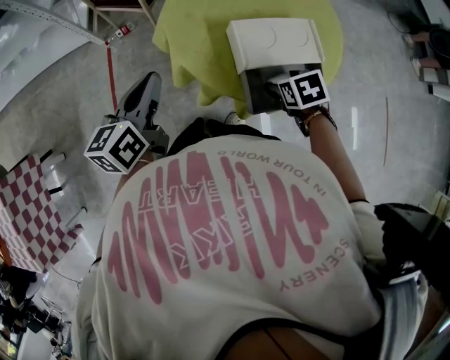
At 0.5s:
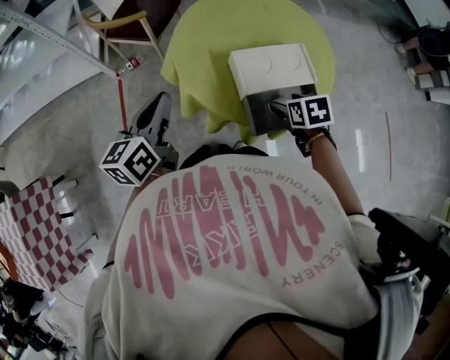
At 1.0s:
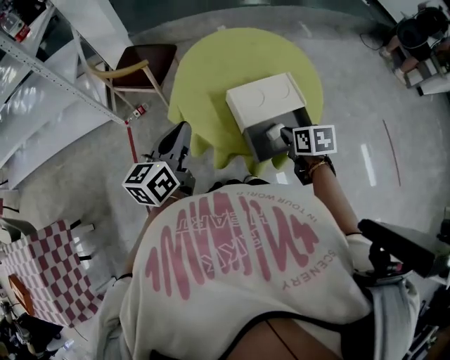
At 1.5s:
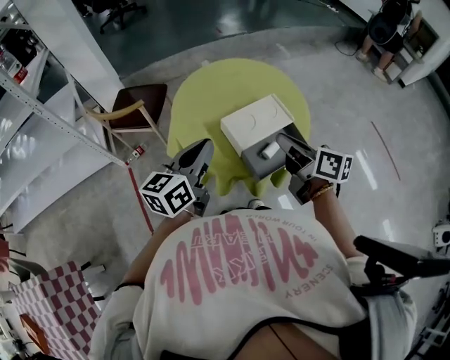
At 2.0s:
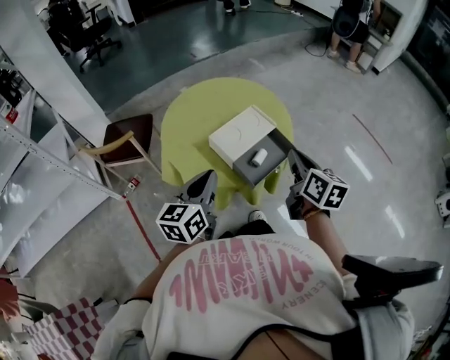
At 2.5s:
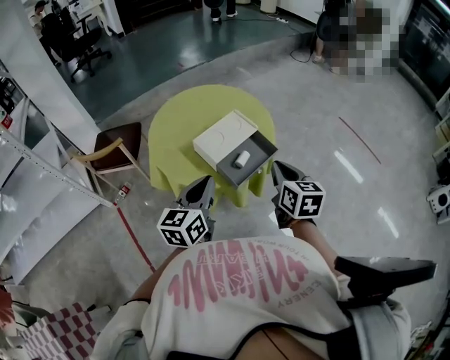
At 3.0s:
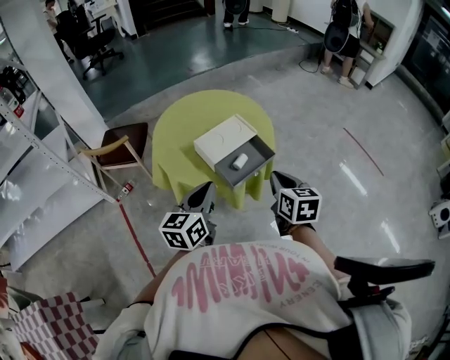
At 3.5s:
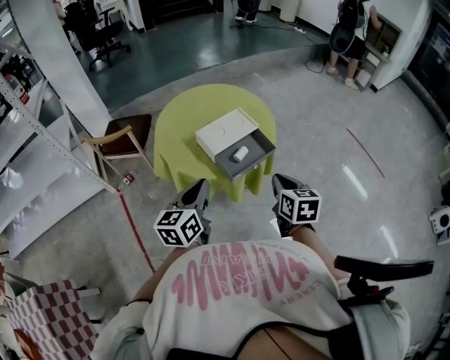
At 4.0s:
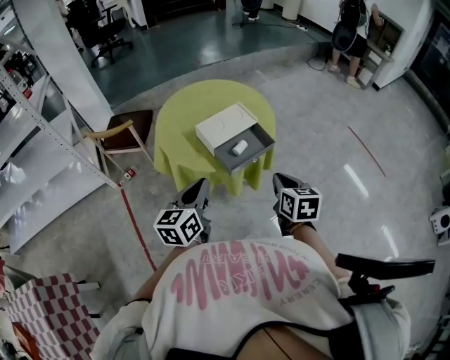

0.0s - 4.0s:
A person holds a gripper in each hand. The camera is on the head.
0.0s - 2.0s: The left gripper ends up about 15 cm from where it was, and swivels some 30 degrees; the right gripper goes roughly 20 cm upward, tips its fingers upward by approximately 50 degrees, and closes its fingers.
2.0s - 4.0s: The two grippers go about 15 cm backward and to the right. The right gripper turns by approximately 20 degrees.

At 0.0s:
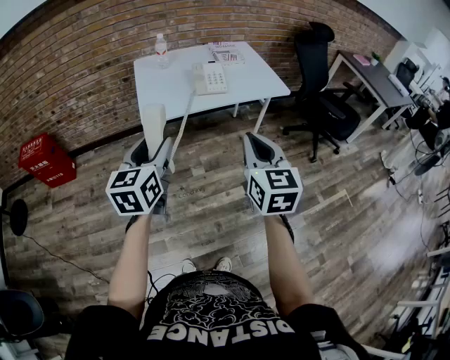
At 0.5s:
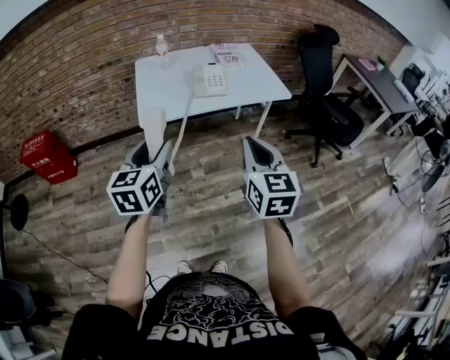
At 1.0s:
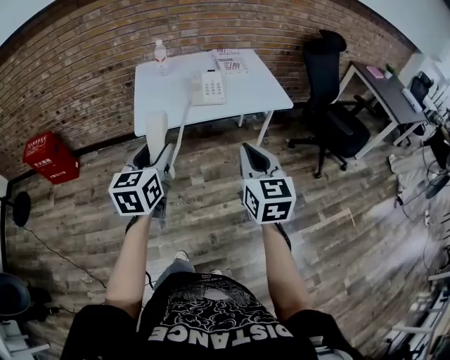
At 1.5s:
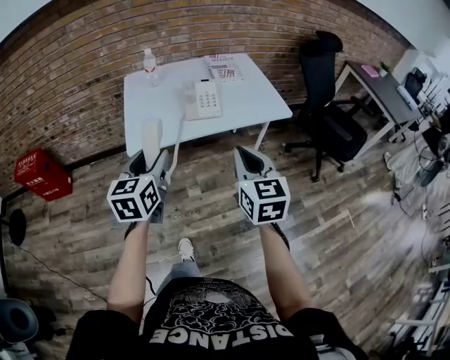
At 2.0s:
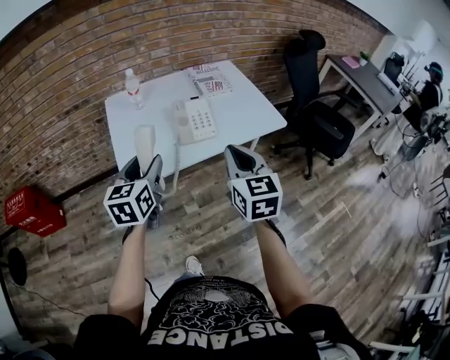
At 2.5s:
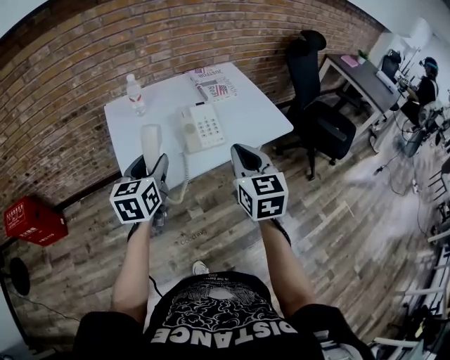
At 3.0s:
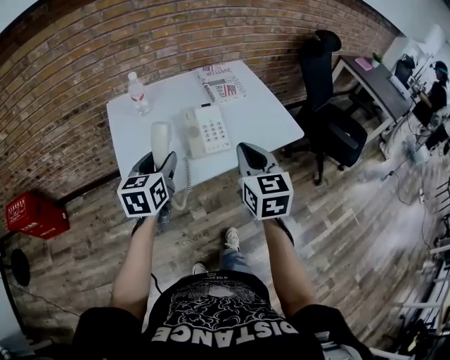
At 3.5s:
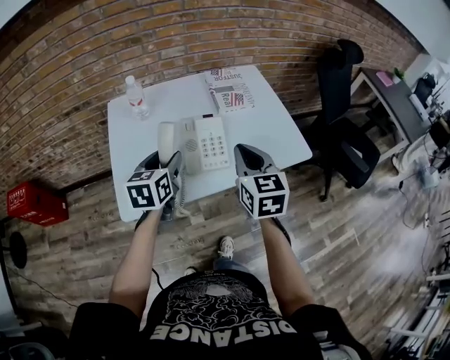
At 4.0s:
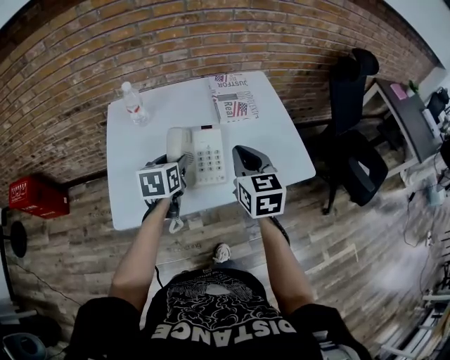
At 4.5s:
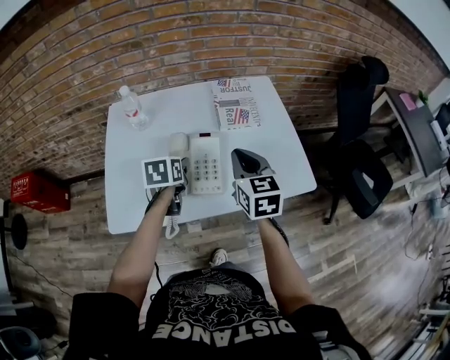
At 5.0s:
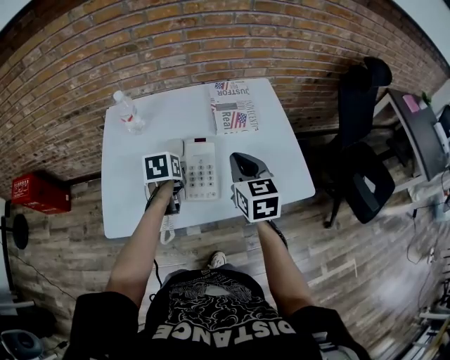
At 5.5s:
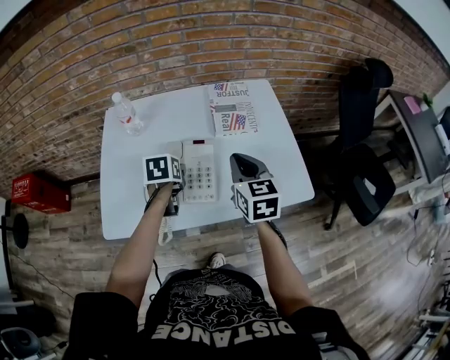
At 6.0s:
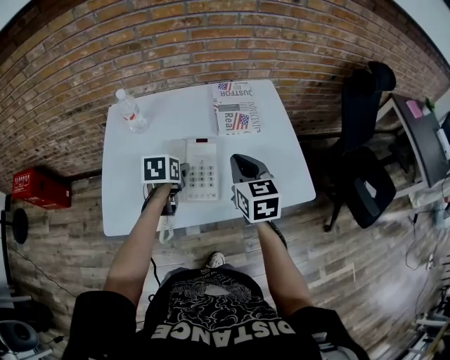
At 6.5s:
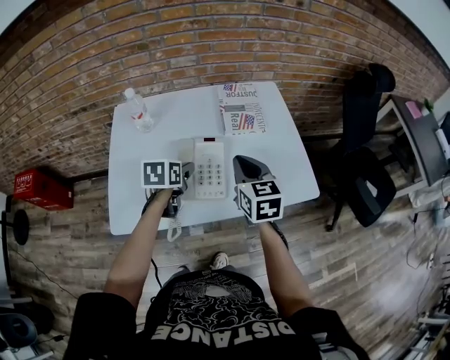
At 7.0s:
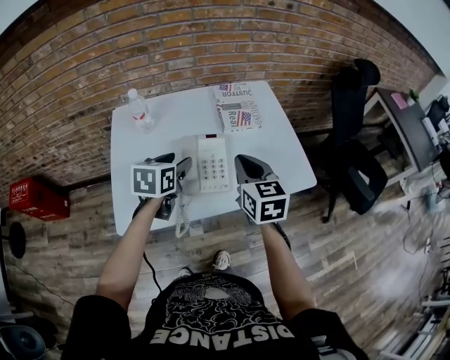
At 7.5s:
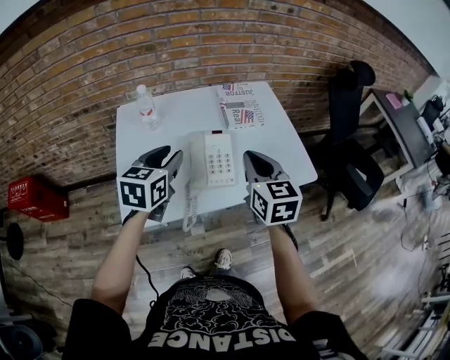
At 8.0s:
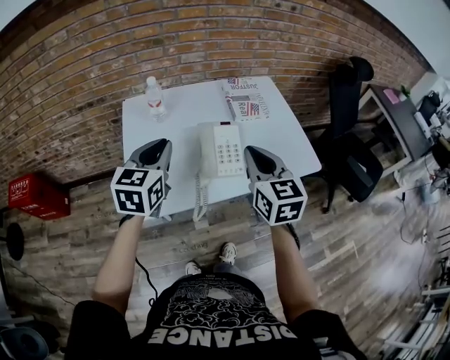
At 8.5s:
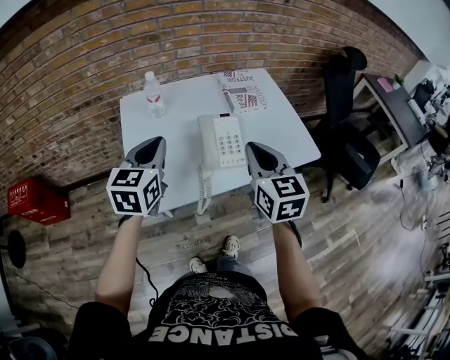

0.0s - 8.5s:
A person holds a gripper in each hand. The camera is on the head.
0.0s - 2.0s: Both grippers travel together forward, about 25 cm.
2.0s - 4.0s: The left gripper heads forward and downward, covering approximately 30 cm, and swivels about 20 degrees, while the right gripper goes about 25 cm forward.
4.0s - 6.5s: The right gripper moves some 5 cm.
6.5s - 8.5s: The left gripper is displaced upward, to the left and backward by about 25 cm, points its fingers some 30 degrees further upward, and closes up, while the right gripper moves backward, upward and to the left, about 20 cm.

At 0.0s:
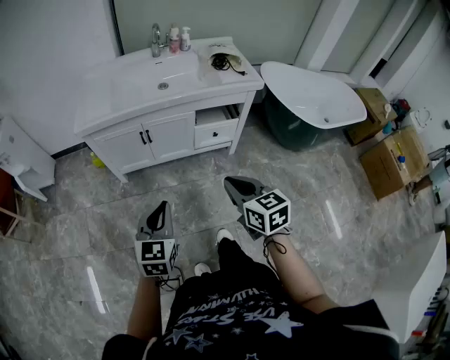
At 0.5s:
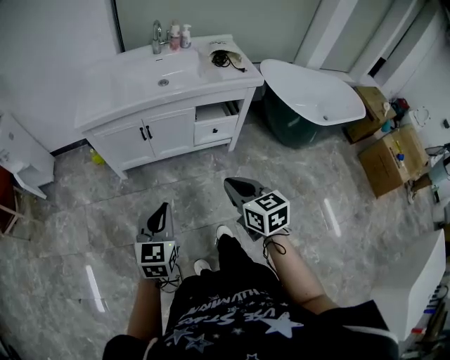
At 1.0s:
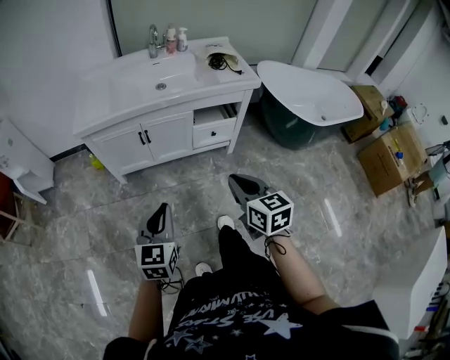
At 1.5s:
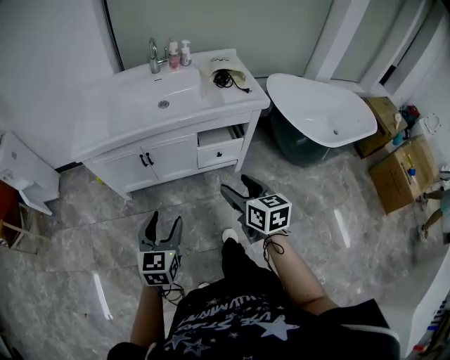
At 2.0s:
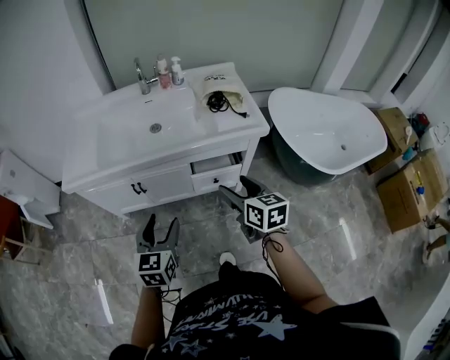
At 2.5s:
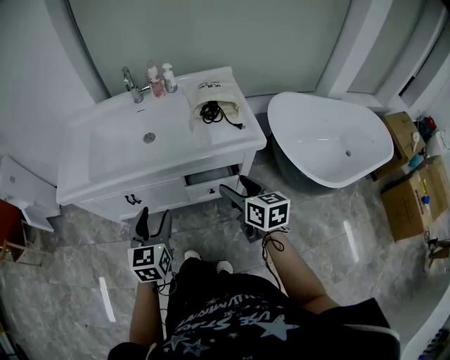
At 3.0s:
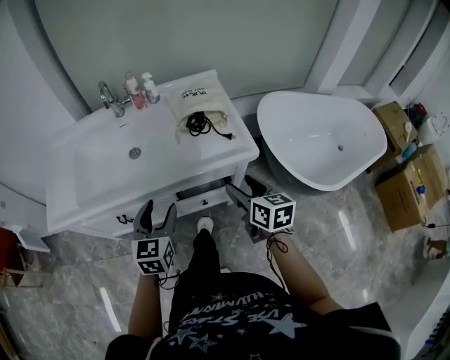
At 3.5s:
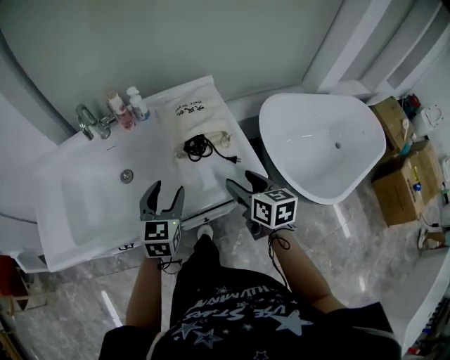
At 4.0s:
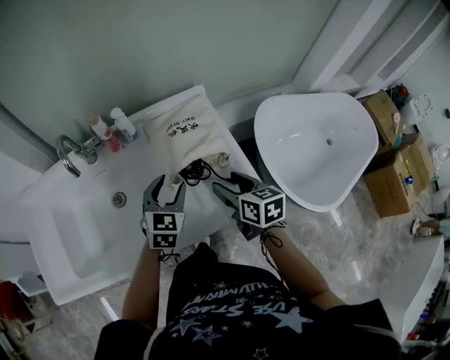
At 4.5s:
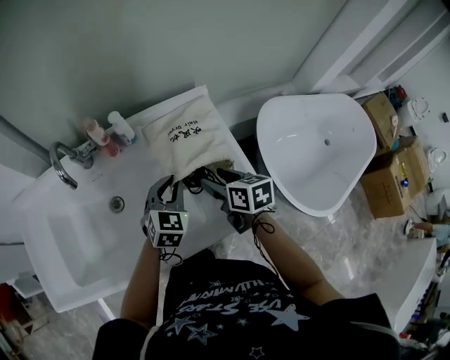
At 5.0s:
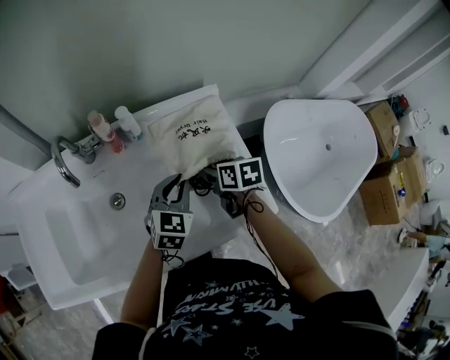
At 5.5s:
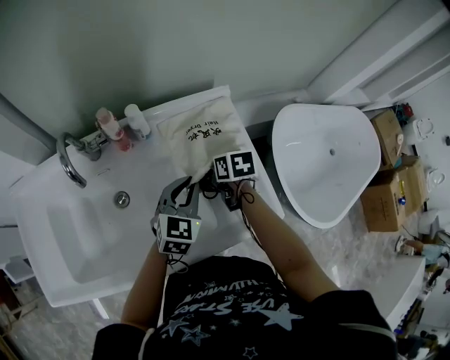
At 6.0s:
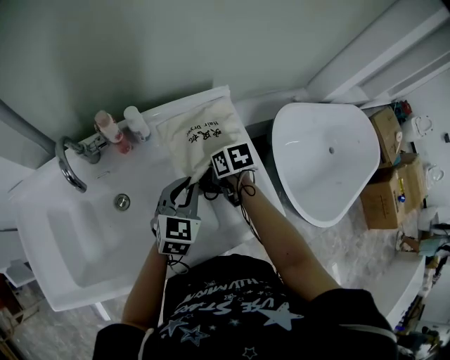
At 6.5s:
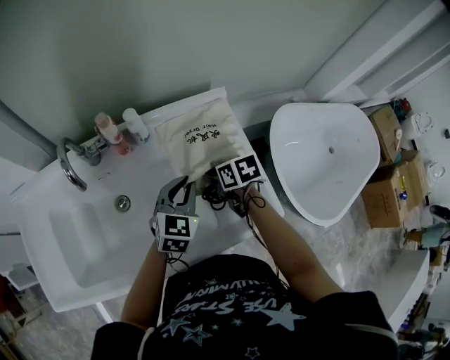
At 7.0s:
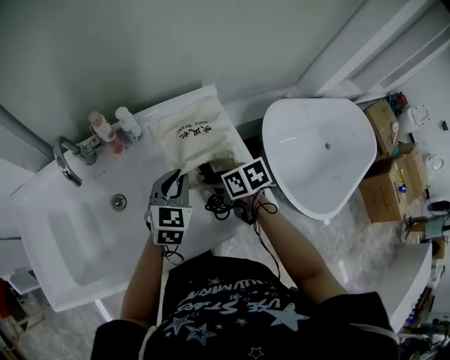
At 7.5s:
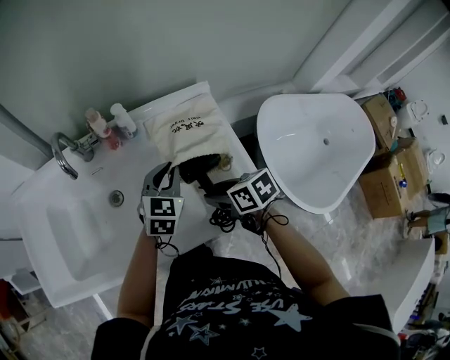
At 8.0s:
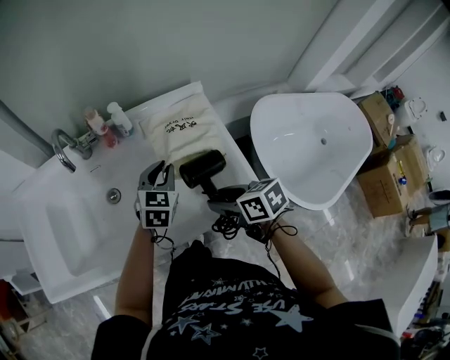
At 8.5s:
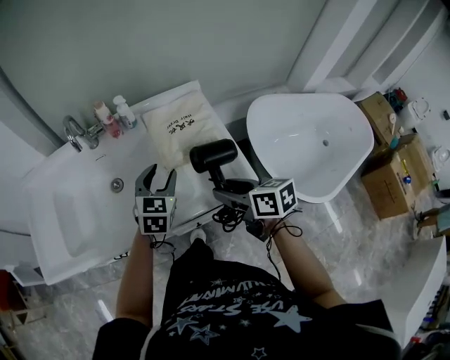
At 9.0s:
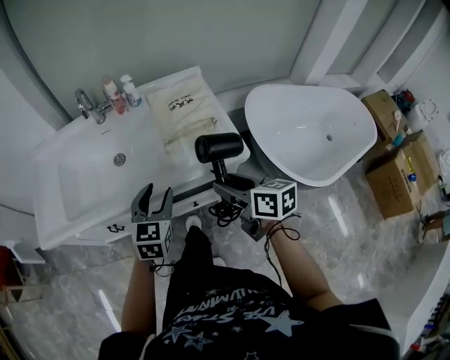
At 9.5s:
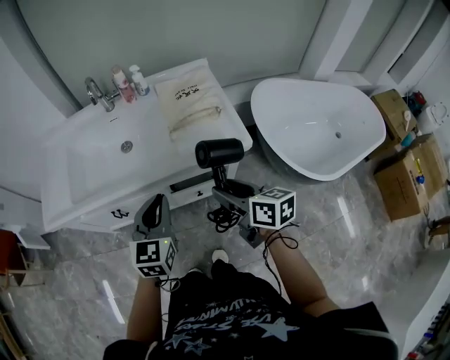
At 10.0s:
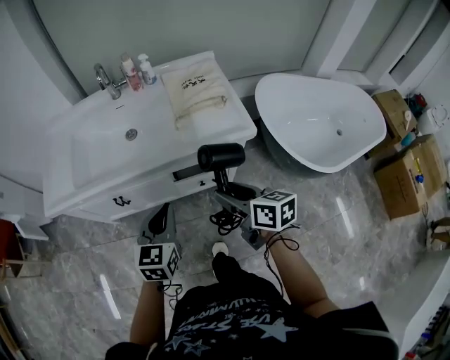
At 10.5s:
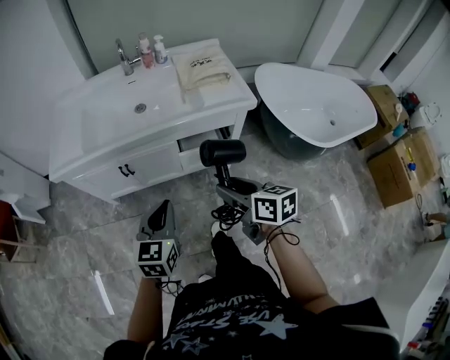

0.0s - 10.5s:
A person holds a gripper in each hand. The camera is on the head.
0.0s - 2.0s: Both grippers travel together forward and to the right, roughly 30 cm. The right gripper opens. The left gripper opens.
2.0s - 4.0s: Both grippers move forward, about 40 cm. The left gripper rotates roughly 20 degrees.
4.0s - 6.5s: The right gripper travels forward, downward and to the left by about 15 cm, and changes its angle by approximately 30 degrees, while the left gripper closes its fingers.
6.5s - 8.5s: The right gripper is displaced backward and upward by approximately 25 cm, and swivels some 30 degrees. The left gripper goes about 10 cm backward, and opens up.
8.5s - 10.5s: The left gripper moves backward and to the left, approximately 50 cm, and closes up; the right gripper shifts about 35 cm backward.

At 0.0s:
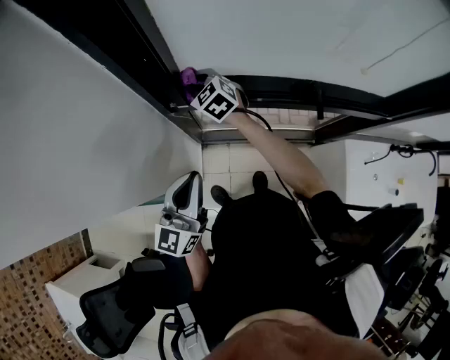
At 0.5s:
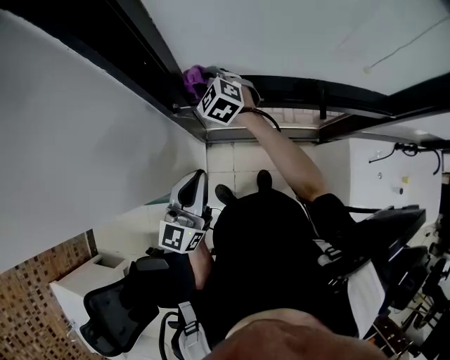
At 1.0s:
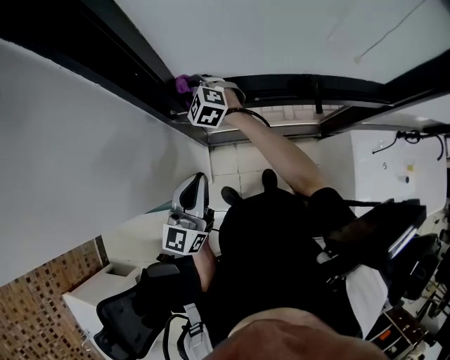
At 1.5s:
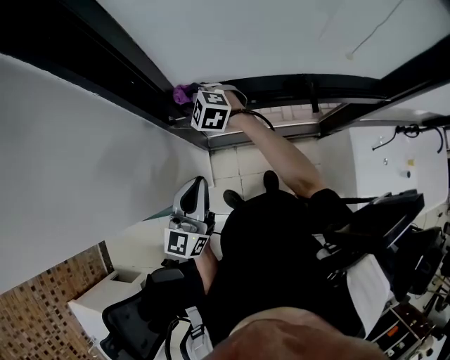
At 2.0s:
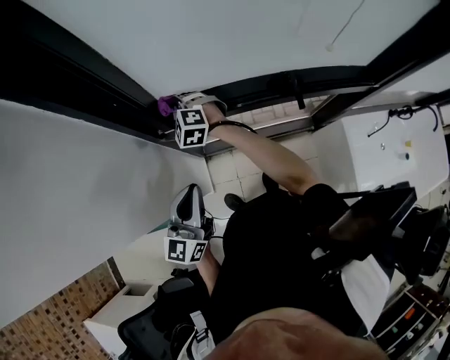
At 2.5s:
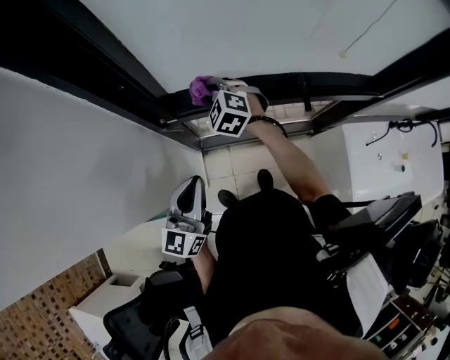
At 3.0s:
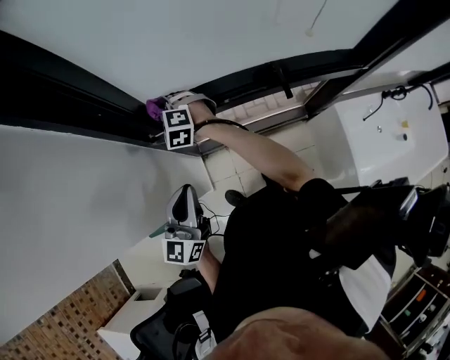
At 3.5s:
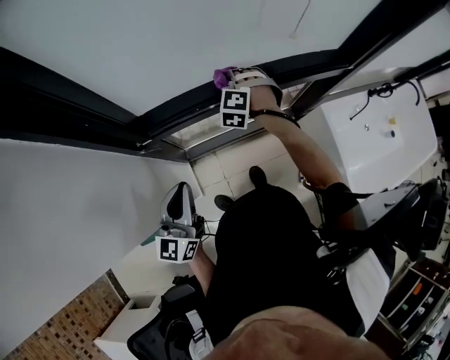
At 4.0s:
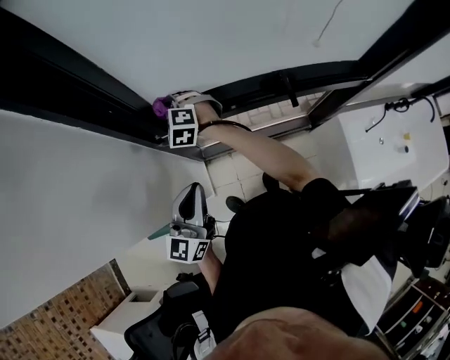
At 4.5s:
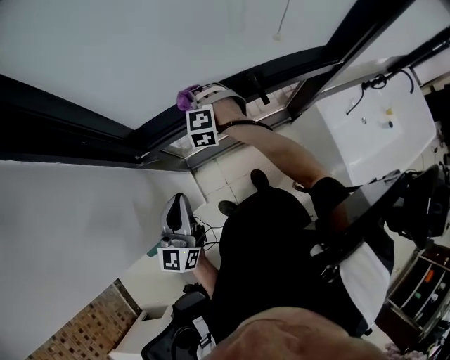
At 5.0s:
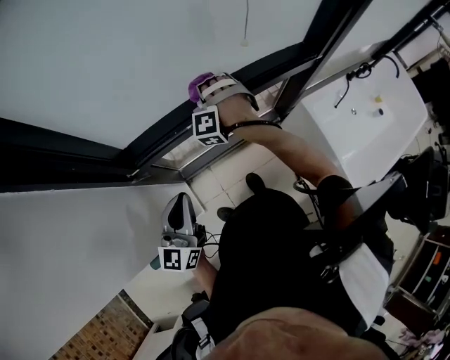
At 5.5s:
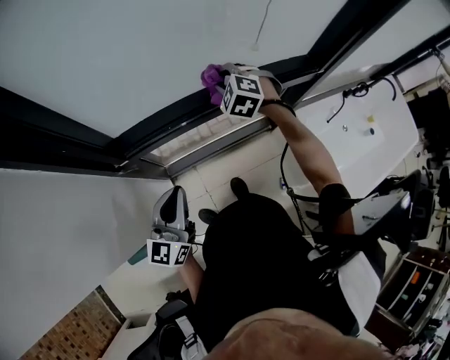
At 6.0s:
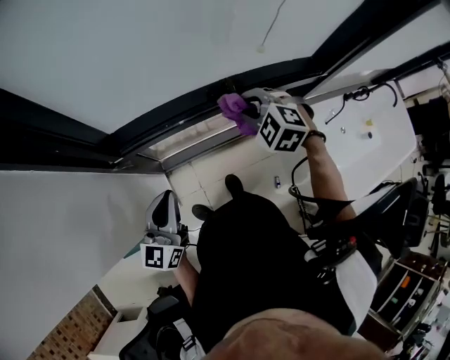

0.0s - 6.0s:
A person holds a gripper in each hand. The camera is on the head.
0.0s - 2.0s: The right gripper rotates roughly 30 degrees.
4.0s - 6.0s: The left gripper changes place by some 5 cm. Meanwhile the right gripper ends up about 40 cm from where it was.
